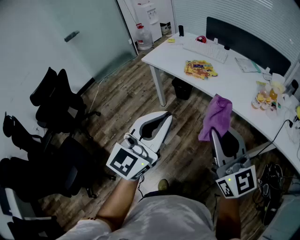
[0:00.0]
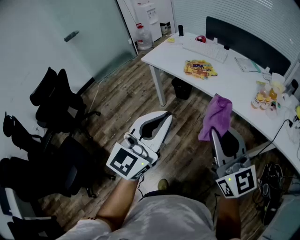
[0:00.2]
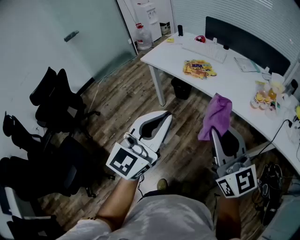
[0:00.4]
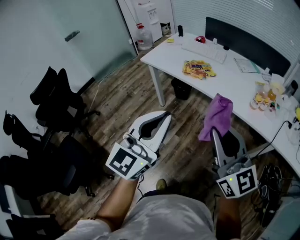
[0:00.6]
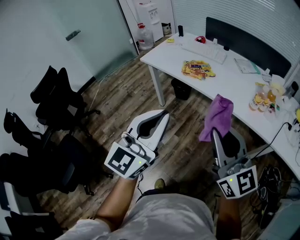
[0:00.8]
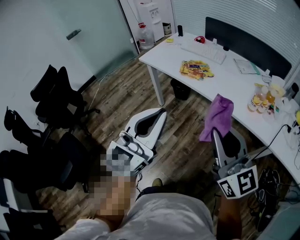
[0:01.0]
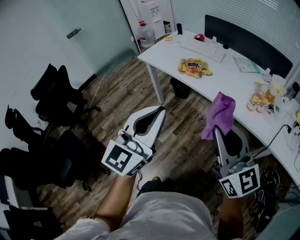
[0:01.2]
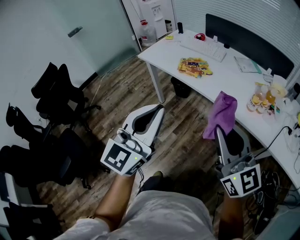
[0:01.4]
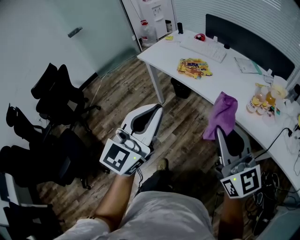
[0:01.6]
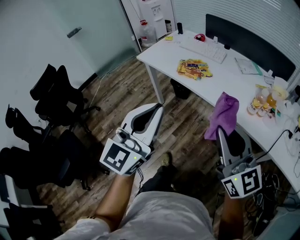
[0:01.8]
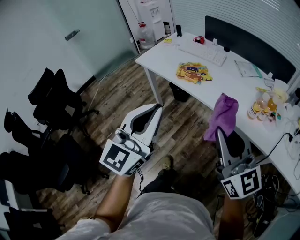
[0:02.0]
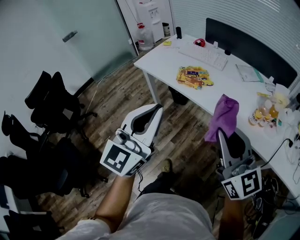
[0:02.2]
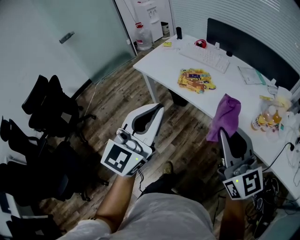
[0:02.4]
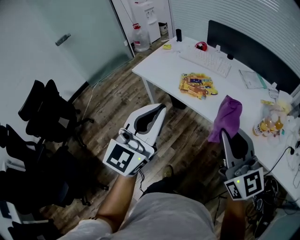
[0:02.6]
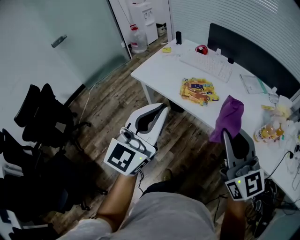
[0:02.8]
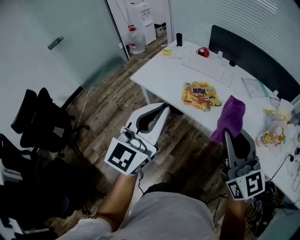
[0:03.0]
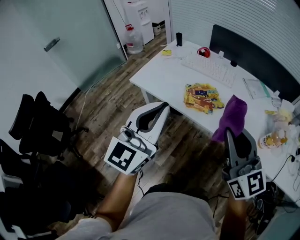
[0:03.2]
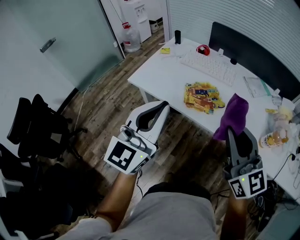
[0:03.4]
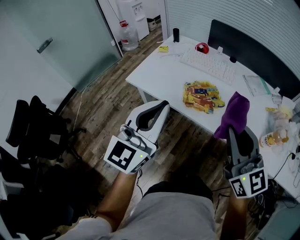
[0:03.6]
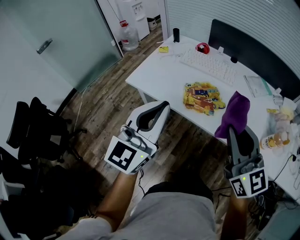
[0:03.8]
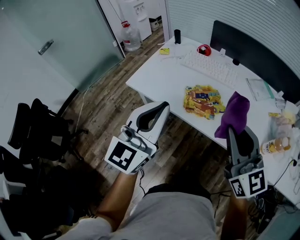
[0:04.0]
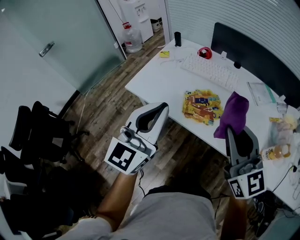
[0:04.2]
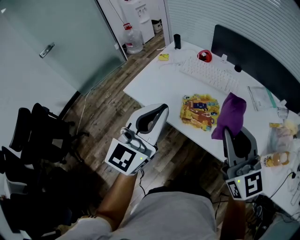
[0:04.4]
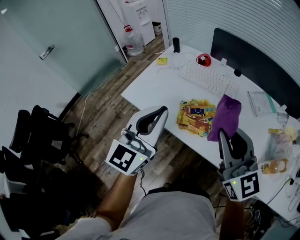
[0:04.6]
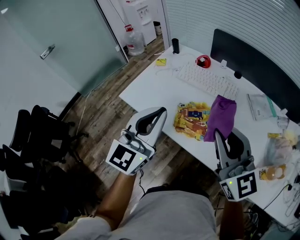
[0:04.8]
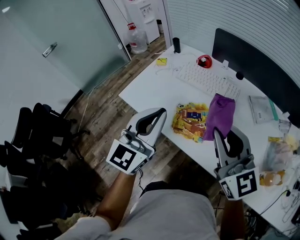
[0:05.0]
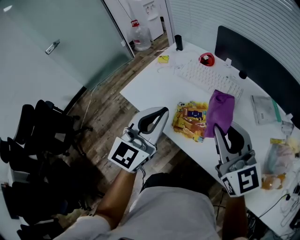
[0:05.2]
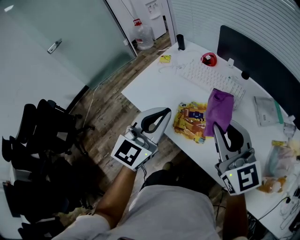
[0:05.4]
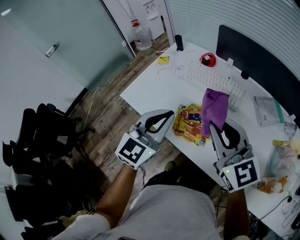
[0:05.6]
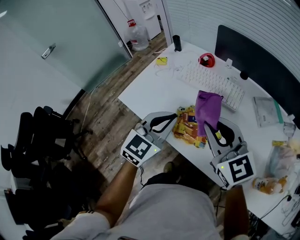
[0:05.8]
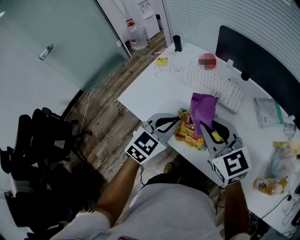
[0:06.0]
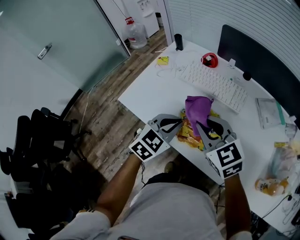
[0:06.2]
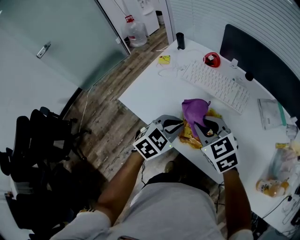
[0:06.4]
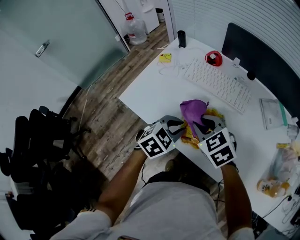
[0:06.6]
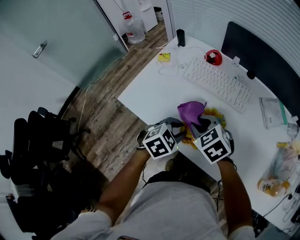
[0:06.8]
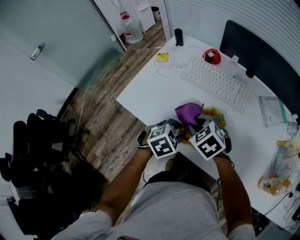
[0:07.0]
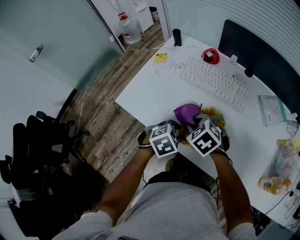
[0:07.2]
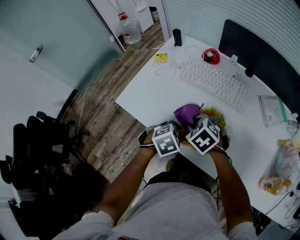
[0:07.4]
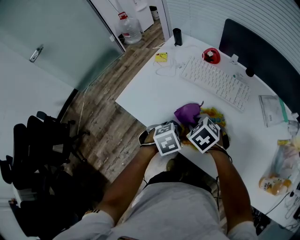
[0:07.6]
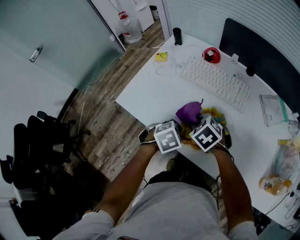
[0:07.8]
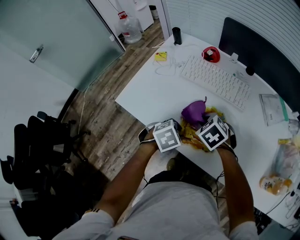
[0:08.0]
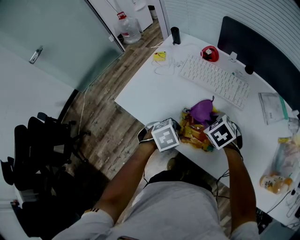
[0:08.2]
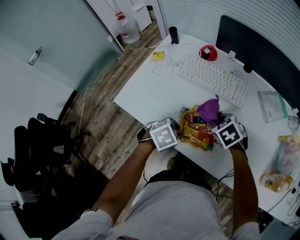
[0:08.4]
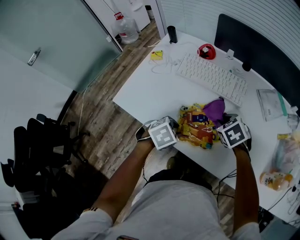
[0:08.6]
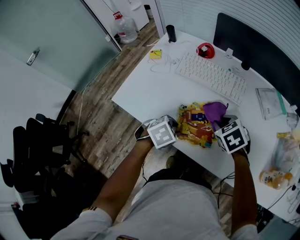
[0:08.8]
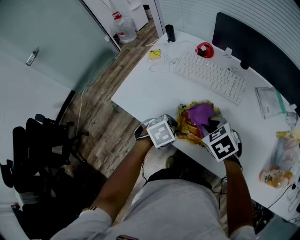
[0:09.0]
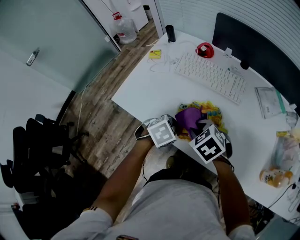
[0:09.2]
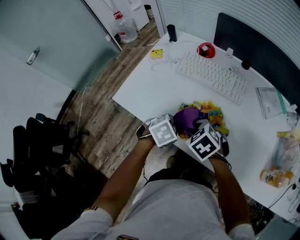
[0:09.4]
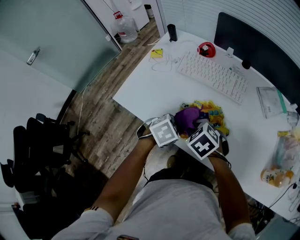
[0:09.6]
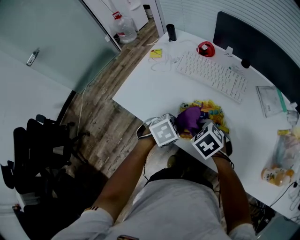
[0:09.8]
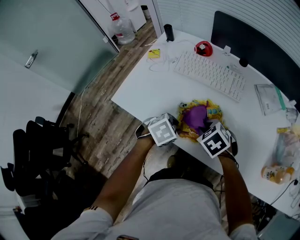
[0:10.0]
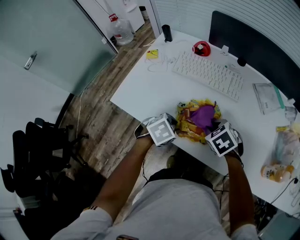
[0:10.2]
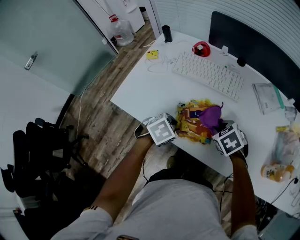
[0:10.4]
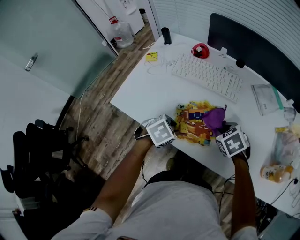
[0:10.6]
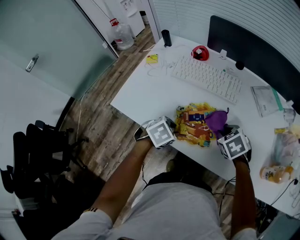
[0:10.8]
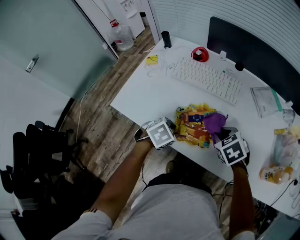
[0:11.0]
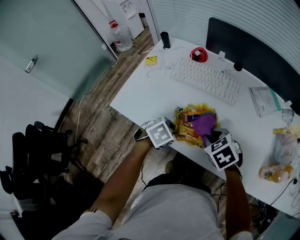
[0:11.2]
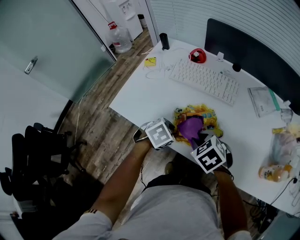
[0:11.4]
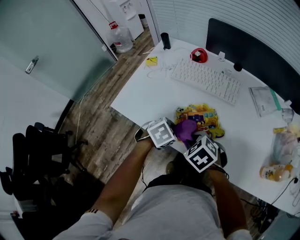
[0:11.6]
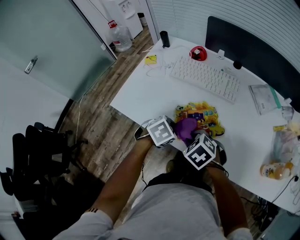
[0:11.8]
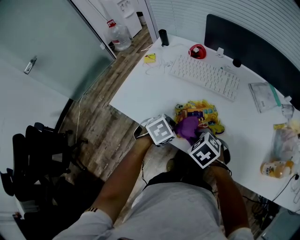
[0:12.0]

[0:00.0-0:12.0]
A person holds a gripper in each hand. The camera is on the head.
0:00.0 to 0:01.6: The right gripper heads to the right, covering approximately 10 cm. The left gripper shifts roughly 5 cm to the right.
0:01.6 to 0:03.0: Both grippers travel together forward, approximately 20 cm.
0:03.0 to 0:04.4: Both grippers move forward, some 15 cm.
0:04.4 to 0:06.0: The right gripper shifts about 15 cm forward and downward, and changes its angle by about 20 degrees, while the left gripper travels downward, forward and to the right by approximately 20 cm, and points its fingers some 30 degrees further downward.
0:06.0 to 0:07.6: Both grippers travel together downward, roughly 20 cm. The right gripper angles its fingers downward, by roughly 50 degrees. Meanwhile the left gripper angles its fingers downward, by approximately 40 degrees, and opens its fingers.
0:07.6 to 0:09.0: The right gripper shifts approximately 10 cm to the right.
0:09.0 to 0:10.4: The right gripper moves to the right, approximately 5 cm.
0:10.4 to 0:12.0: The right gripper shifts approximately 10 cm backward and to the left.

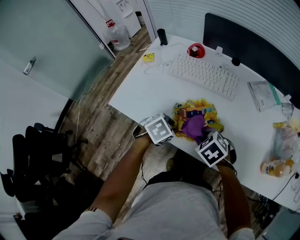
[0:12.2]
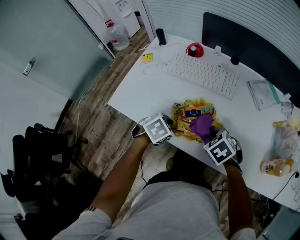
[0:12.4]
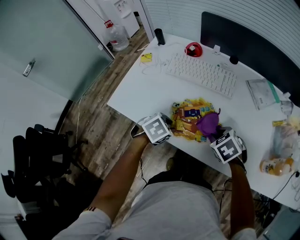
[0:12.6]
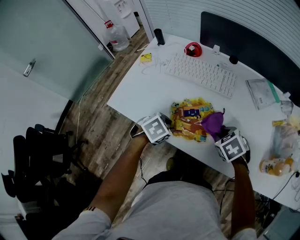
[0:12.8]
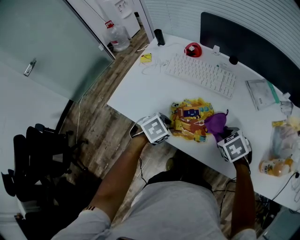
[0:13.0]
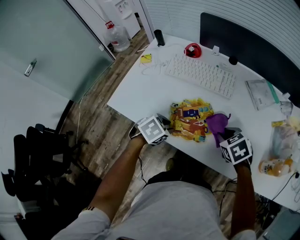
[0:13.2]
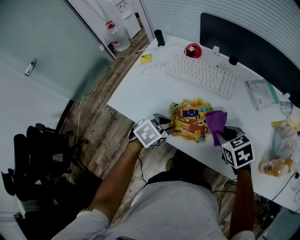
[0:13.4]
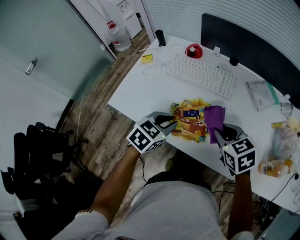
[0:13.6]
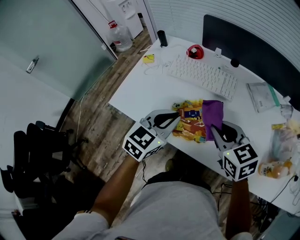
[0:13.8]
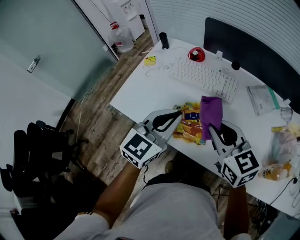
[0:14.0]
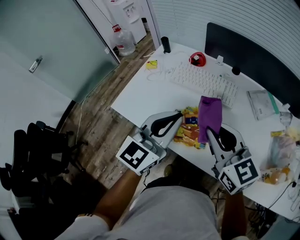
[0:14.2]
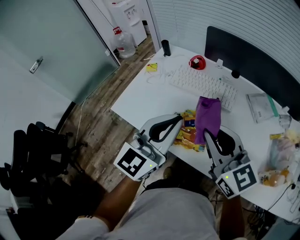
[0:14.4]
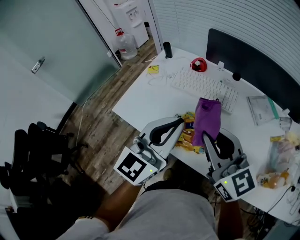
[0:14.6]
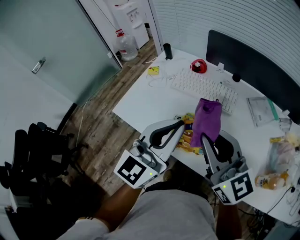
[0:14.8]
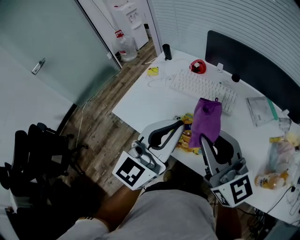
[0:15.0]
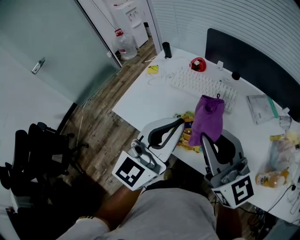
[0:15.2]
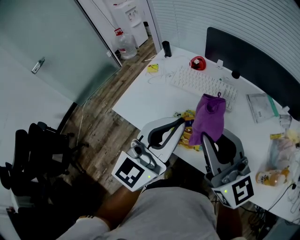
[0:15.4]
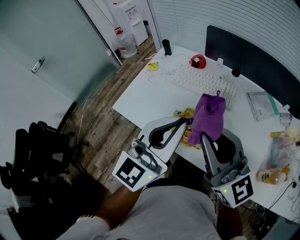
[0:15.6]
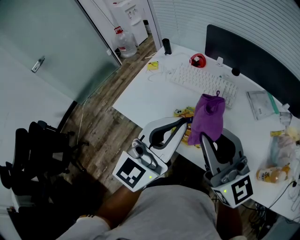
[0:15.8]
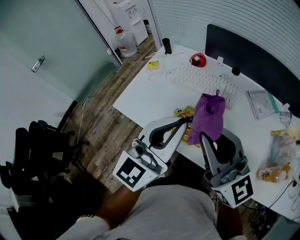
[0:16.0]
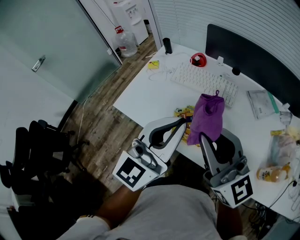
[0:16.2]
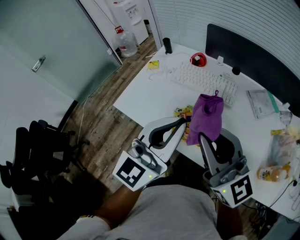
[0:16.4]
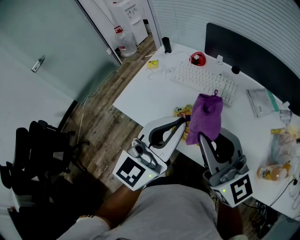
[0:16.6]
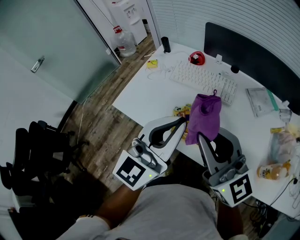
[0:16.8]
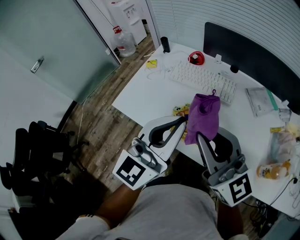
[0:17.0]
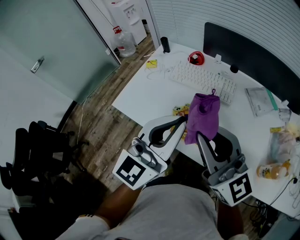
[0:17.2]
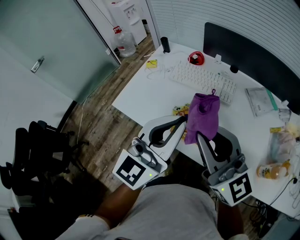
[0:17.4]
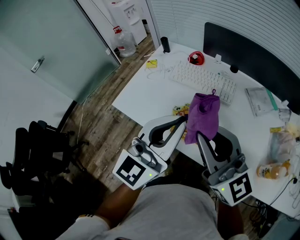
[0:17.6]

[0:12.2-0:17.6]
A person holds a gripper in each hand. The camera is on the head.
0:12.2 to 0:13.6: The right gripper goes roughly 10 cm upward and to the right, and turns by some 30 degrees, while the left gripper goes about 10 cm upward, and changes its angle by some 30 degrees.
0:13.6 to 0:15.0: Both grippers move upward, about 20 cm. The right gripper points its fingers roughly 50 degrees further upward; the left gripper tips its fingers upward by about 50 degrees.
0:15.0 to 0:16.2: There are only small adjustments of the grippers.
0:16.2 to 0:17.6: Both grippers stay put.

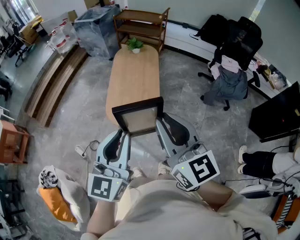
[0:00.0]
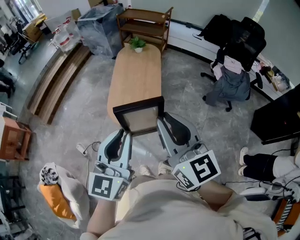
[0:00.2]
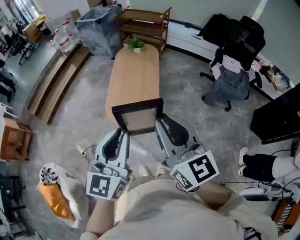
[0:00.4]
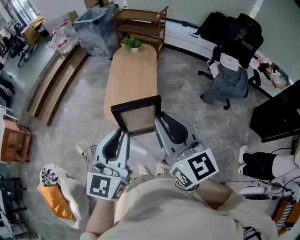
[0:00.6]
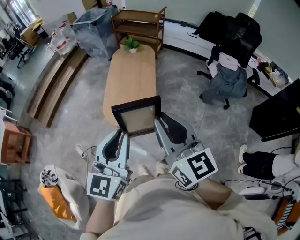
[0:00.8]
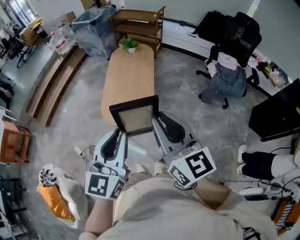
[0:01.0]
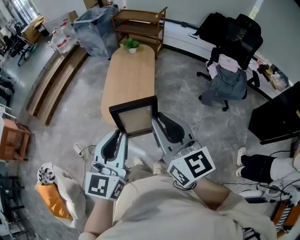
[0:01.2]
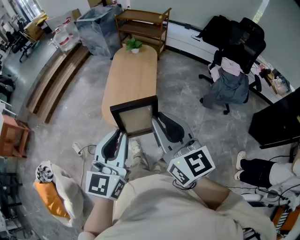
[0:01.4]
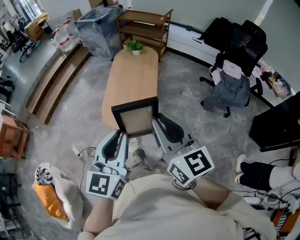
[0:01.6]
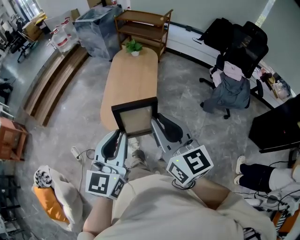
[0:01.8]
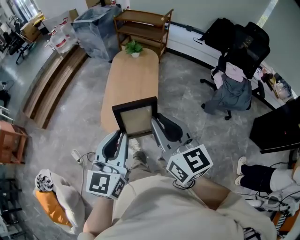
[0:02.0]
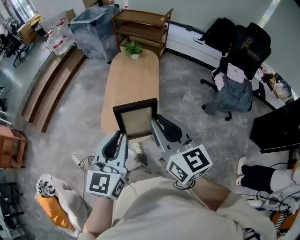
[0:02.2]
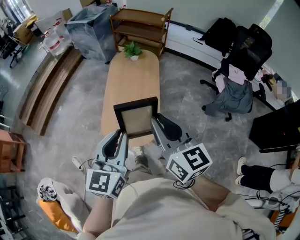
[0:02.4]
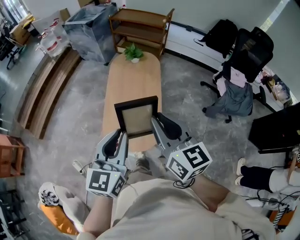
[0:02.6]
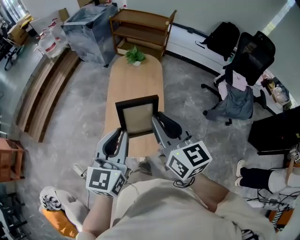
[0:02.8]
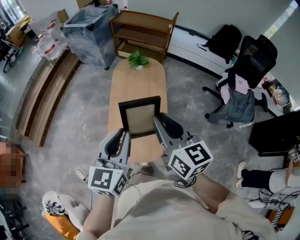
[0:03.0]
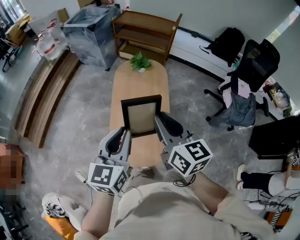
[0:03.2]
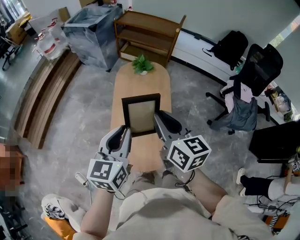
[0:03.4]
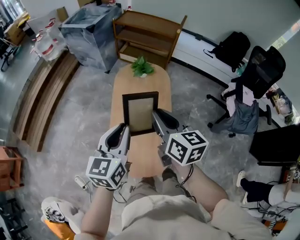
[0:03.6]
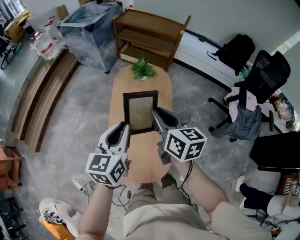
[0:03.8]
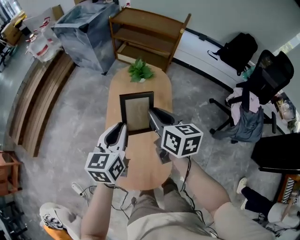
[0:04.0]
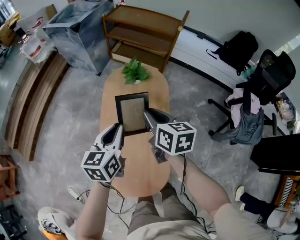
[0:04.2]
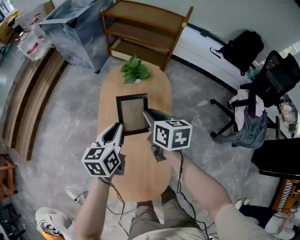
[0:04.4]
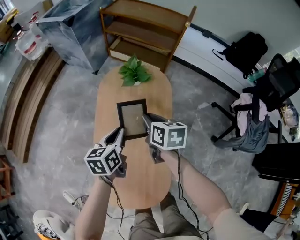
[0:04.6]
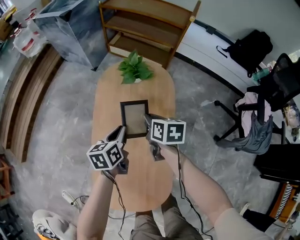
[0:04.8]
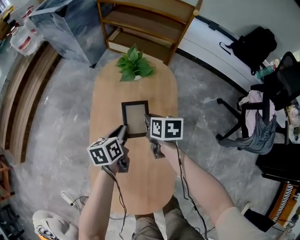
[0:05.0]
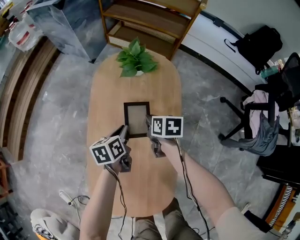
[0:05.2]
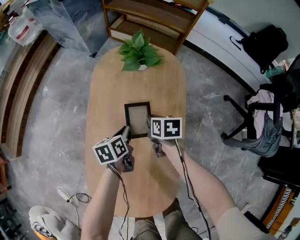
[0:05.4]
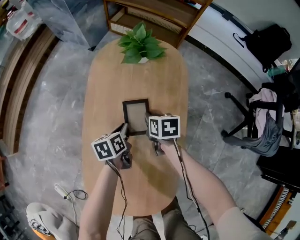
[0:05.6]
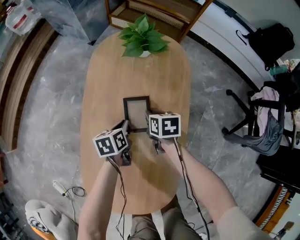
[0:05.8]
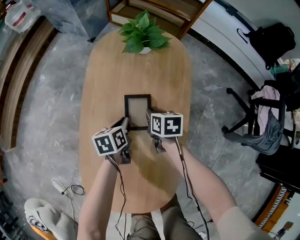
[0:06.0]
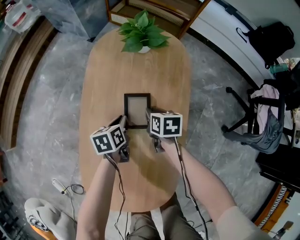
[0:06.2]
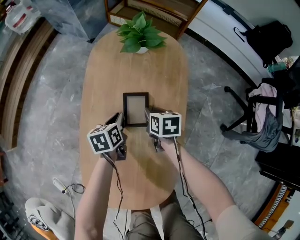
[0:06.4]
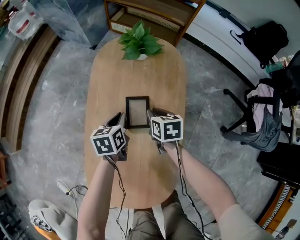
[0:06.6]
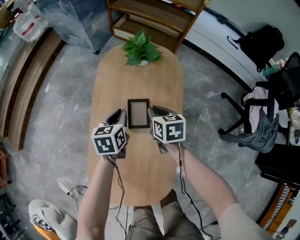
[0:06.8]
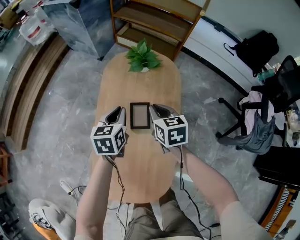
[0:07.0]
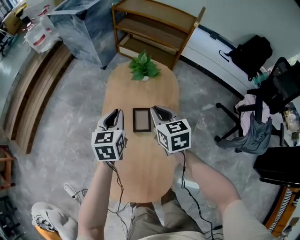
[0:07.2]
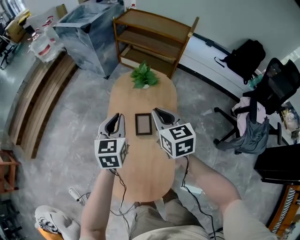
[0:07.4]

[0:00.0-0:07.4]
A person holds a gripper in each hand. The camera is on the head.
0:00.0 to 0:01.4: The two grippers go about 5 cm to the right.
0:01.4 to 0:03.0: Both grippers are carried forward, approximately 40 cm.
0:03.0 to 0:04.4: The two grippers go roughly 50 cm forward and downward. The right gripper changes its angle by roughly 30 degrees. The left gripper turns by approximately 20 degrees.
0:04.4 to 0:06.0: Both grippers move downward, approximately 35 cm. The right gripper changes its angle by roughly 20 degrees, while the left gripper turns by roughly 30 degrees.
0:06.0 to 0:07.4: The grippers both shift upward by some 40 cm. The right gripper rotates roughly 40 degrees. The left gripper changes its angle by roughly 50 degrees.
